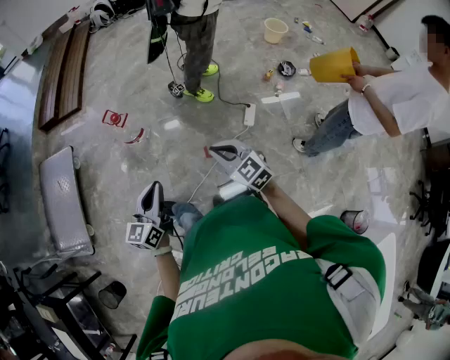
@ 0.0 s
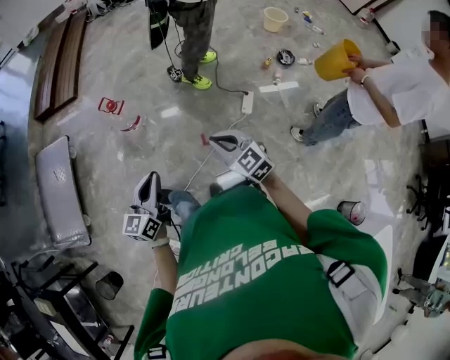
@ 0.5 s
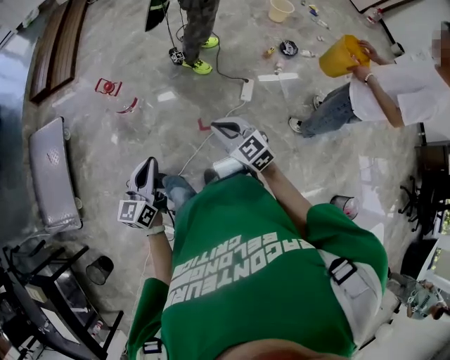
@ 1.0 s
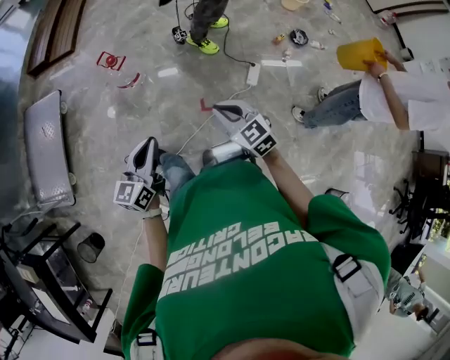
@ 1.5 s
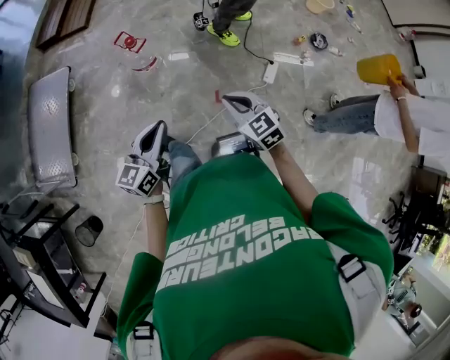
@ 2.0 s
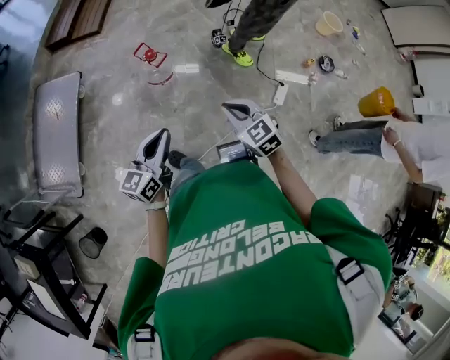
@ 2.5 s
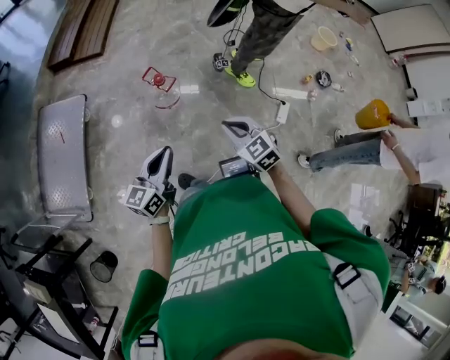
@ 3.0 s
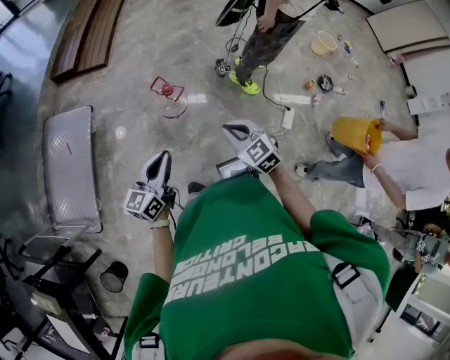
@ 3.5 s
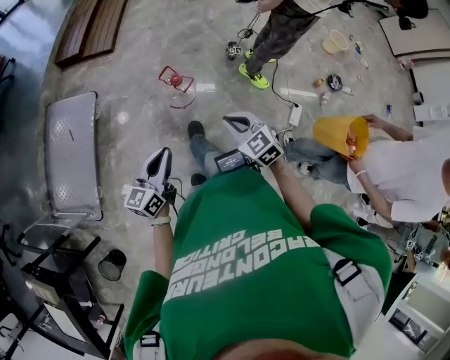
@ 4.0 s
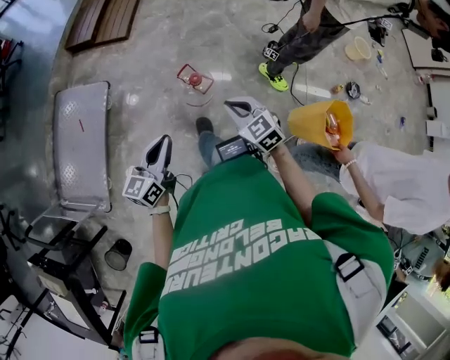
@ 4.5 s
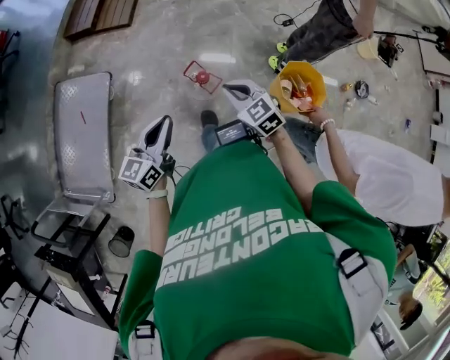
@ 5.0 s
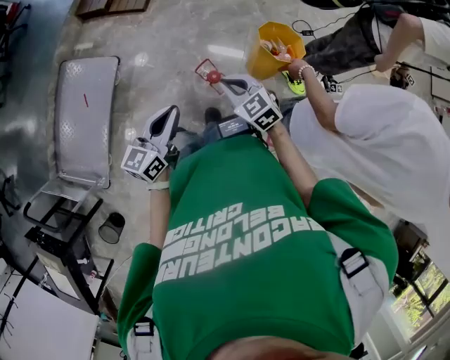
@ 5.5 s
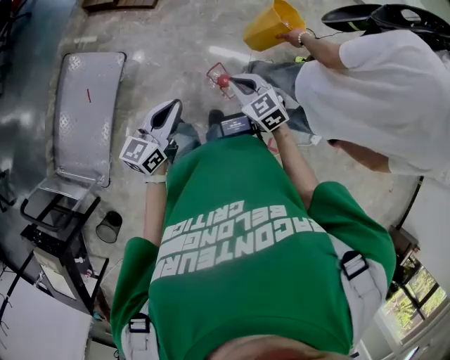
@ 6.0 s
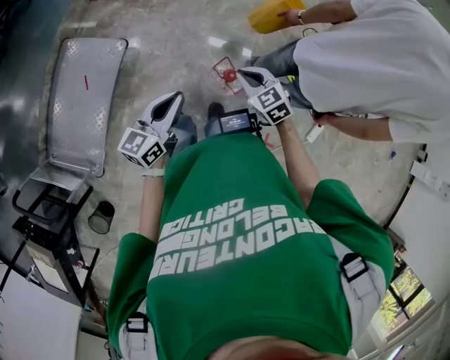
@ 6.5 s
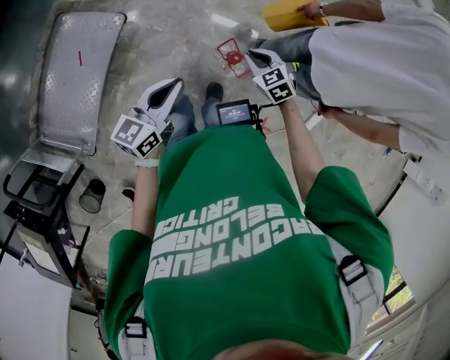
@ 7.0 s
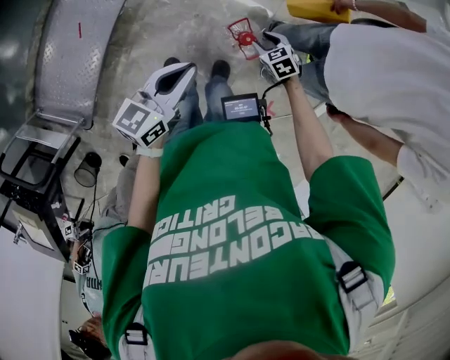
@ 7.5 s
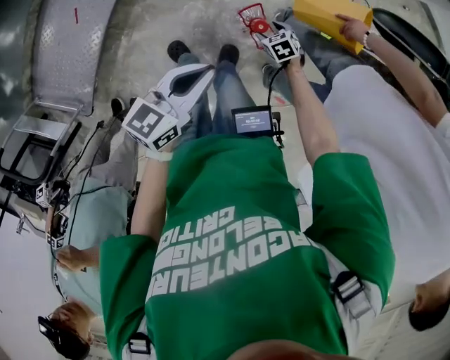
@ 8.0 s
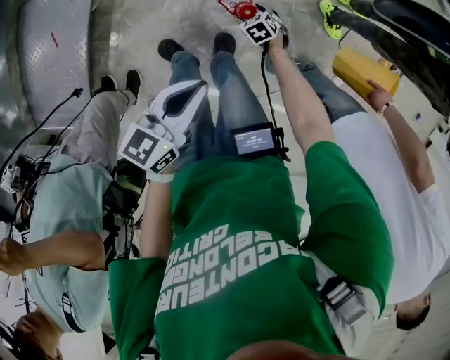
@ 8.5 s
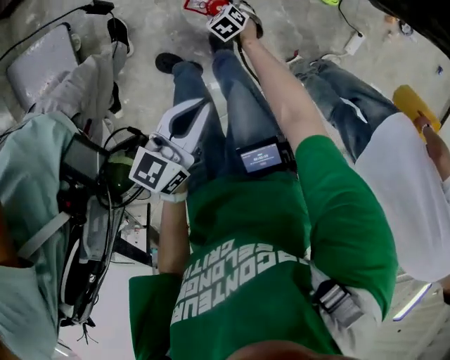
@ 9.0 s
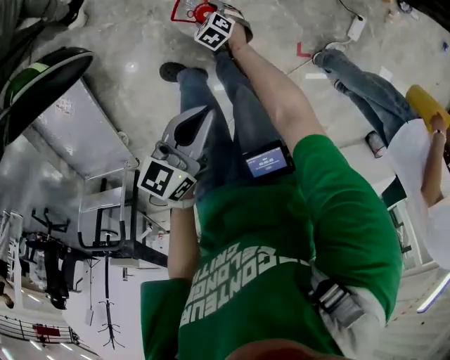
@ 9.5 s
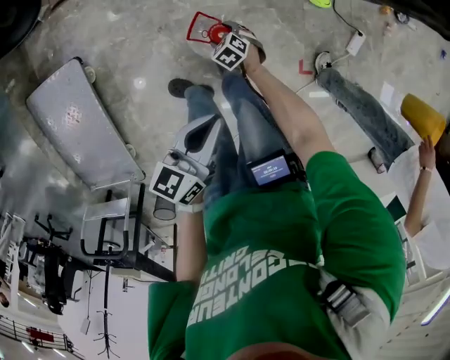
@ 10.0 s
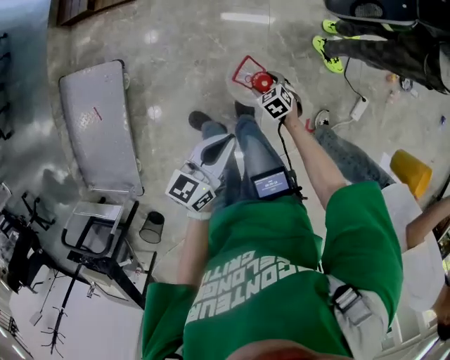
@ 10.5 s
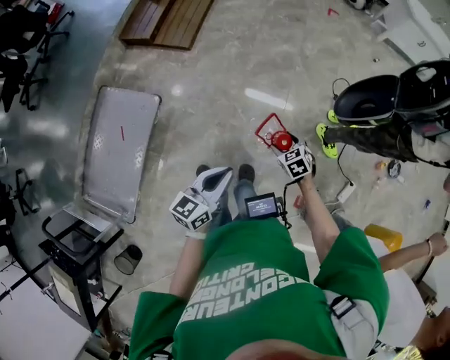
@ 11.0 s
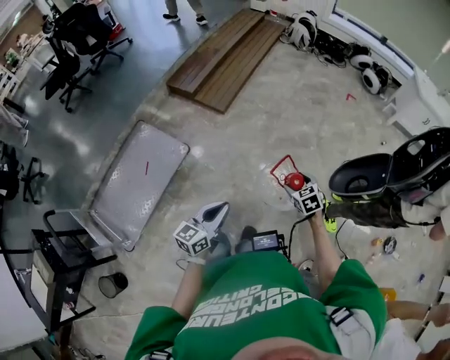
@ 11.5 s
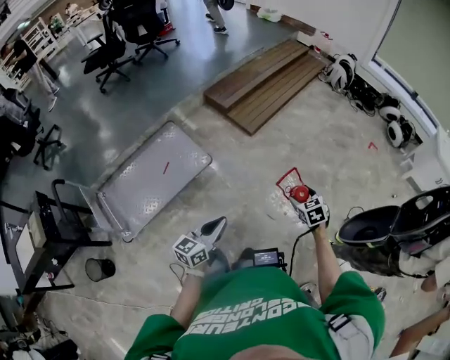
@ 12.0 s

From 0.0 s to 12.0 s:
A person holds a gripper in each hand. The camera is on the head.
From 0.0 s to 2.0 s: Both grippers move to the left and forward, roughly 10 cm.
From 2.0 s to 4.0 s: The grippers both shift to the left and forward by about 30 cm.
From 4.0 s to 6.0 s: Both grippers travel together forward, about 35 cm.
From 6.0 s to 8.0 s: The left gripper heads downward, covering about 10 cm, while the right gripper goes some 40 cm downward, tilts its fingers approximately 30 degrees downward, and opens up.
From 8.0 s to 10.0 s: The left gripper travels downward and to the right by roughly 15 cm, and rotates approximately 20 degrees. The right gripper heads downward, covering roughly 15 cm.
From 10.0 s to 12.0 s: The left gripper moves roughly 25 cm, and turns by approximately 50 degrees. The right gripper goes about 40 cm upward, and swivels about 30 degrees.

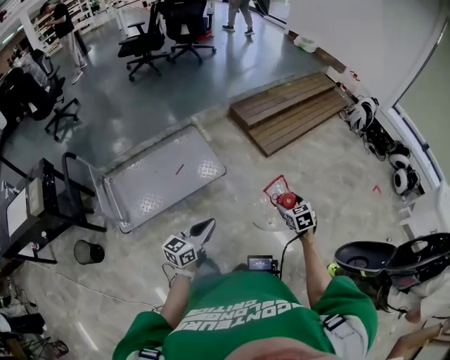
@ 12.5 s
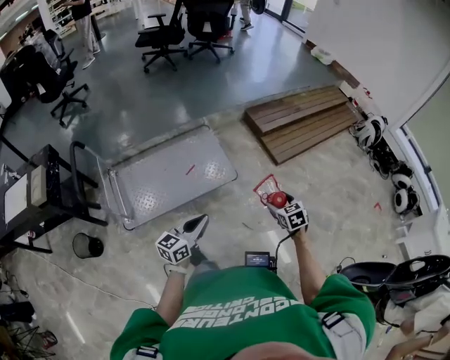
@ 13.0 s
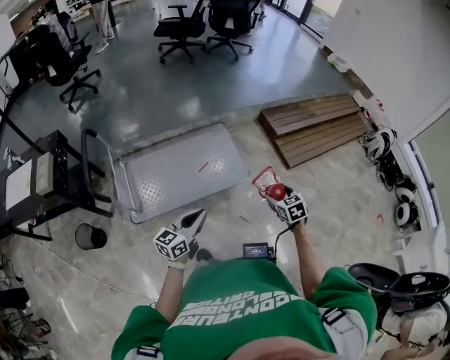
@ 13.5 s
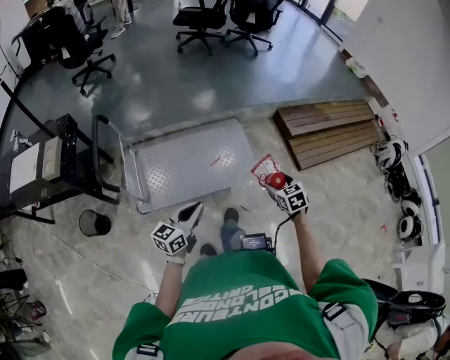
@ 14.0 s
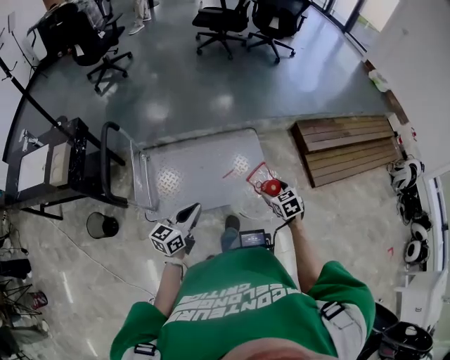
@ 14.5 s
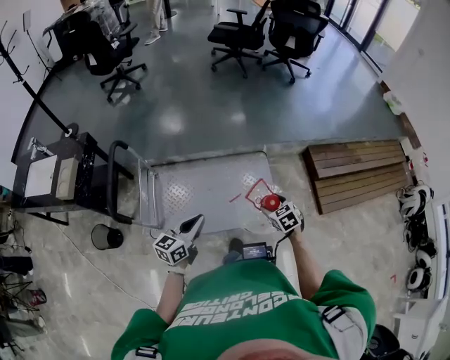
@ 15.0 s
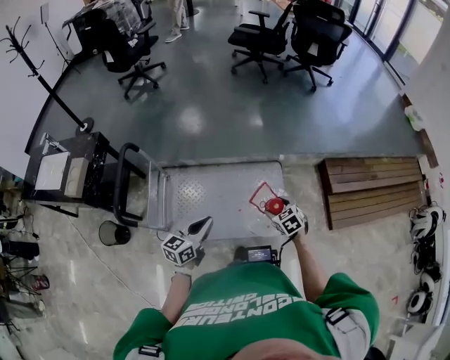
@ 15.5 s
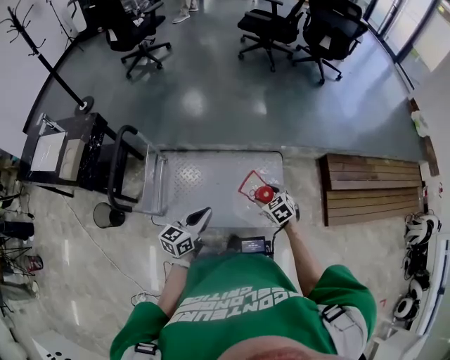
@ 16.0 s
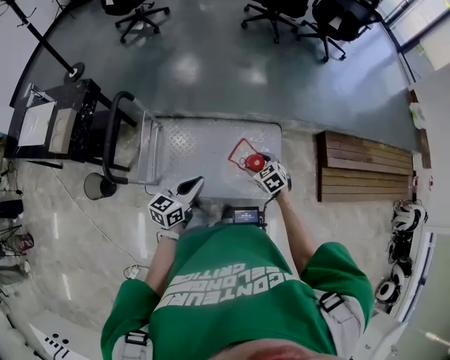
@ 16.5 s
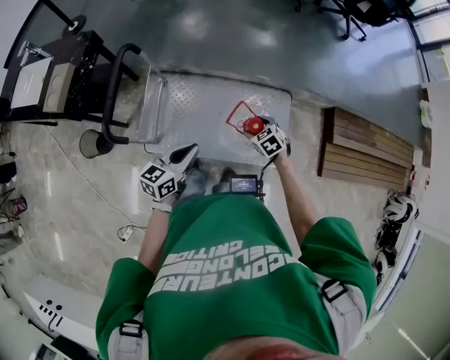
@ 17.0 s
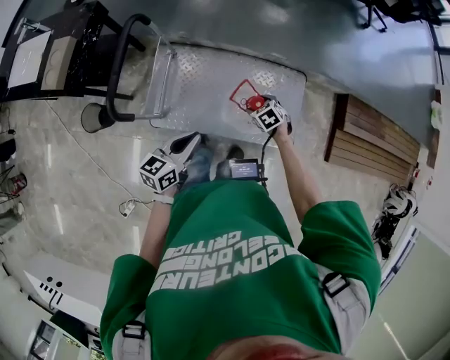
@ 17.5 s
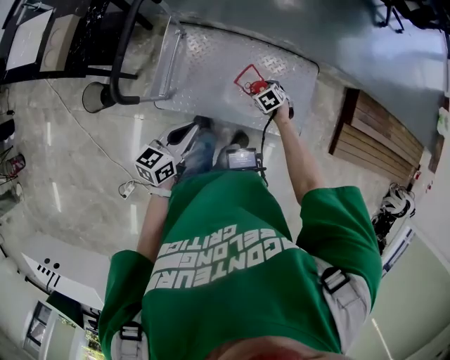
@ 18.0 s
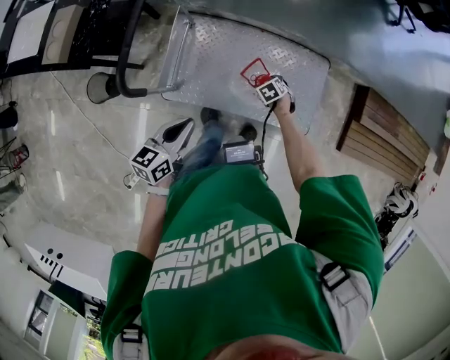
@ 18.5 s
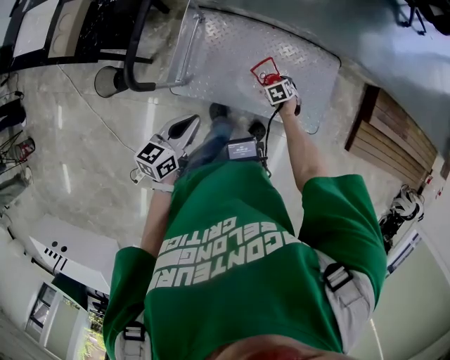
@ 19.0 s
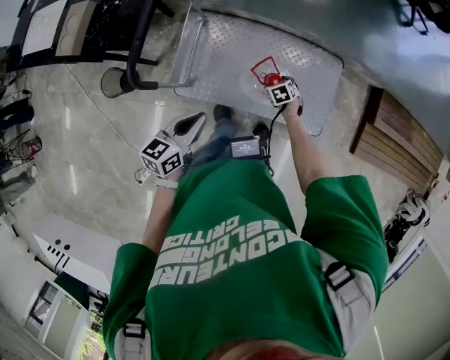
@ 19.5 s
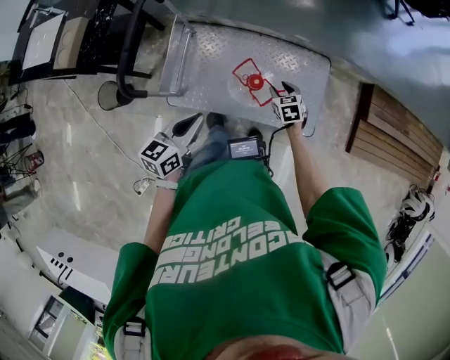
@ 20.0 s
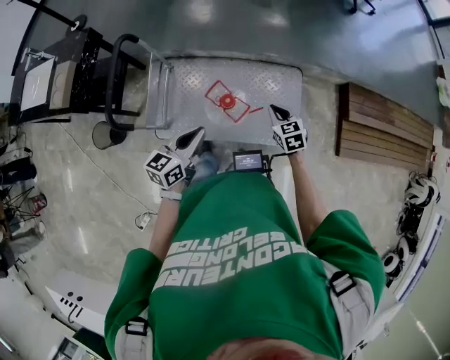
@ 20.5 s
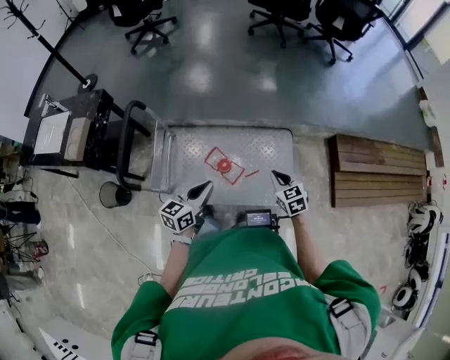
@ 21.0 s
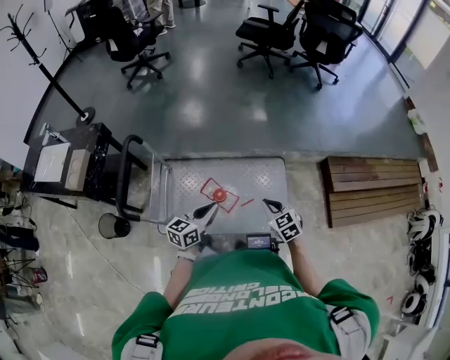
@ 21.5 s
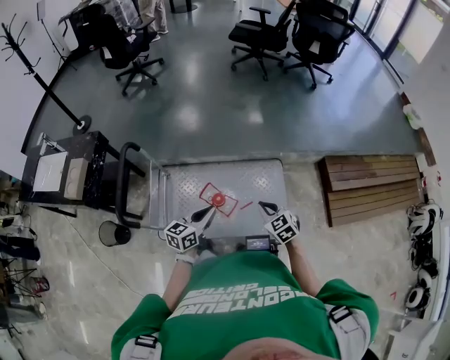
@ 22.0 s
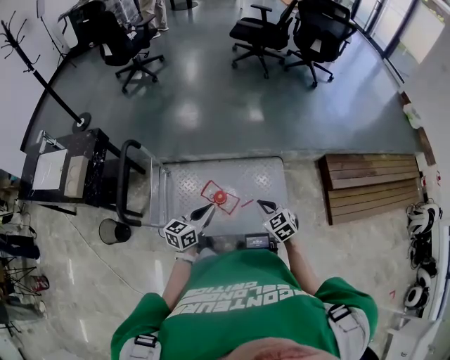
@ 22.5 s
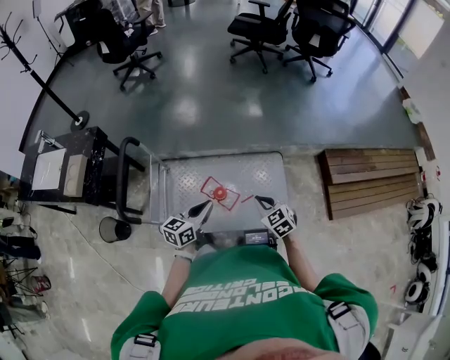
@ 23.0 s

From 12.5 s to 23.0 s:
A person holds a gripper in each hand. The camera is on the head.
From 12.5 s to 14.5 s: The left gripper ends up approximately 40 cm from where it was, and turns by roughly 30 degrees; the right gripper ends up approximately 50 cm from where it was, and rotates some 30 degrees.
From 14.5 s to 16.5 s: The left gripper goes about 15 cm forward; the right gripper goes approximately 25 cm forward and to the left, and changes its angle by some 30 degrees.
From 16.5 s to 19.0 s: The left gripper ends up about 20 cm from where it was. Meanwhile the right gripper travels downward by some 25 cm.
From 19.0 s to 21.0 s: The left gripper moves approximately 20 cm; the right gripper shifts some 30 cm upward, points its fingers some 30 degrees further upward, and closes.
From 21.0 s to 23.0 s: The right gripper shifts some 5 cm to the left.

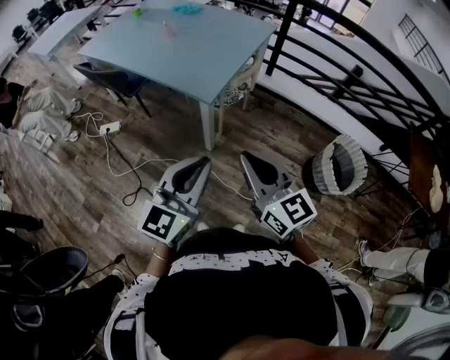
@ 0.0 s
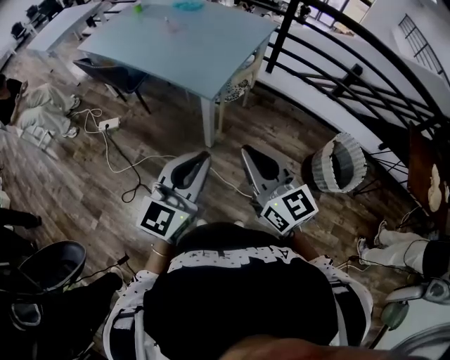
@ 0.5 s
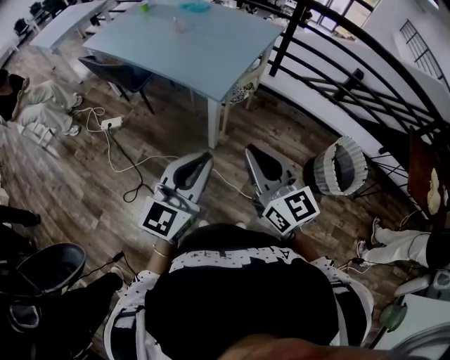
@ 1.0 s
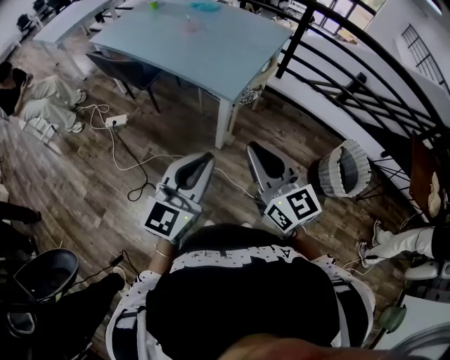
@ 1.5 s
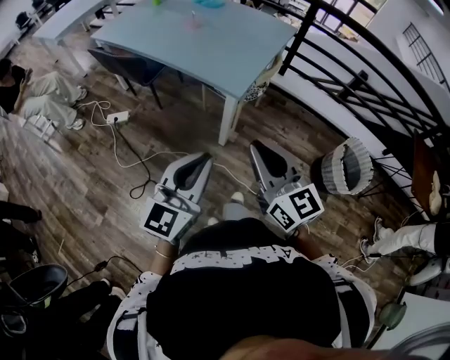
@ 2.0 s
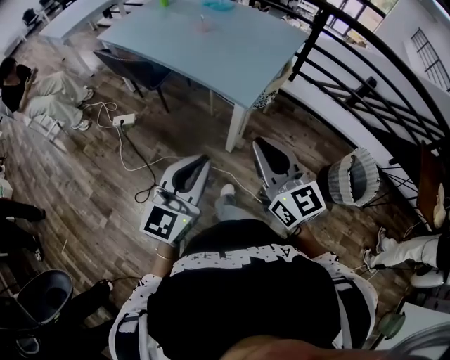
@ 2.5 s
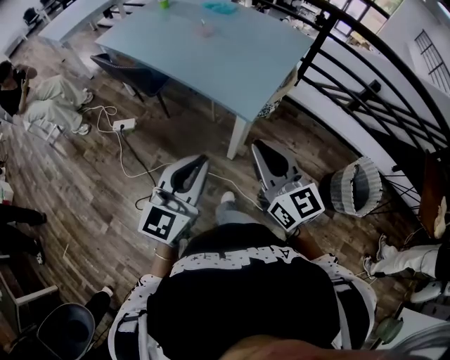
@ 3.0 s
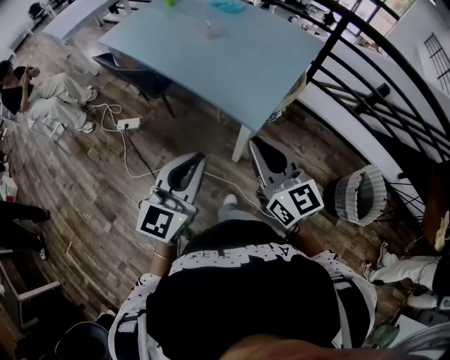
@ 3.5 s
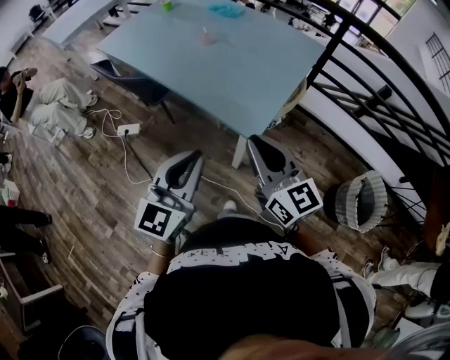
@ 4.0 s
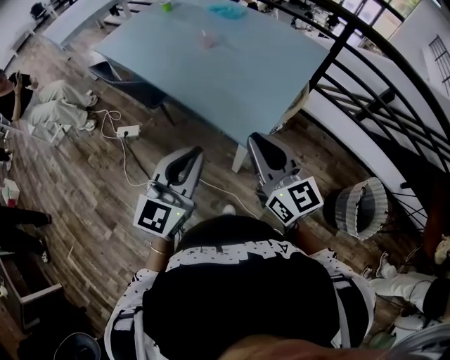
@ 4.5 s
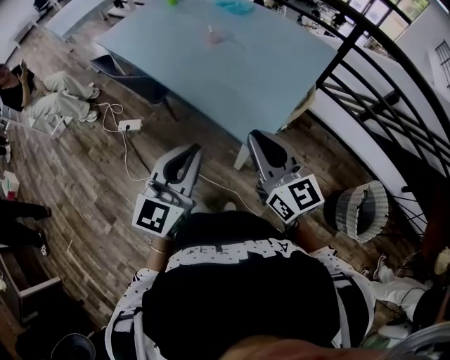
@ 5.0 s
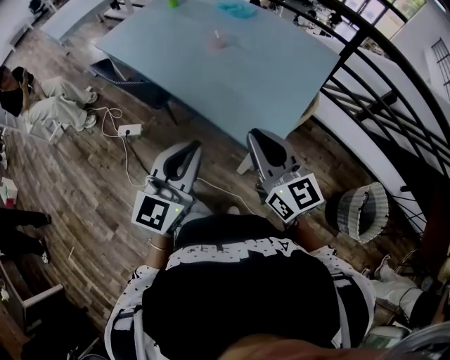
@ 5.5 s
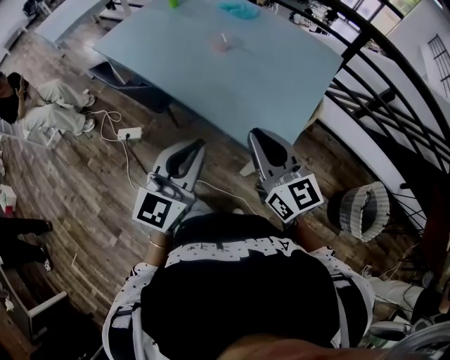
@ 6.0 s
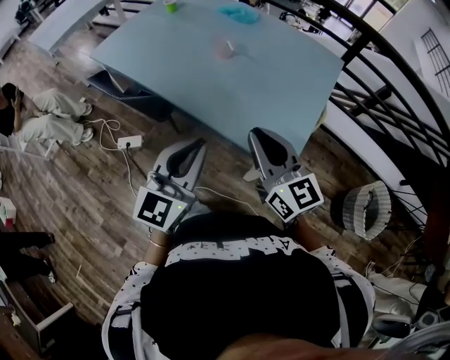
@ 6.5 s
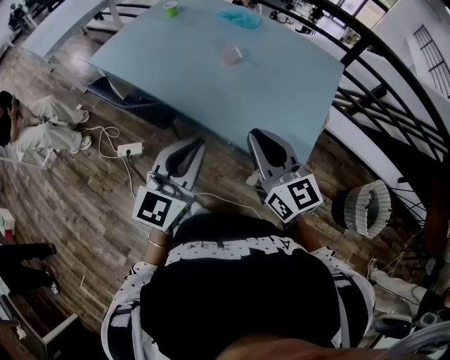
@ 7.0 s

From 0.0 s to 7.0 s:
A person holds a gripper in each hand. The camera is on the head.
From 0.0 s to 2.0 s: The two grippers go some 10 cm to the left.
From 2.0 s to 3.5 s: The grippers both shift forward by roughly 15 cm.
From 3.5 s to 5.0 s: The two grippers go roughly 10 cm forward.
From 5.0 s to 7.0 s: Both grippers travel together to the left and forward, some 20 cm.
